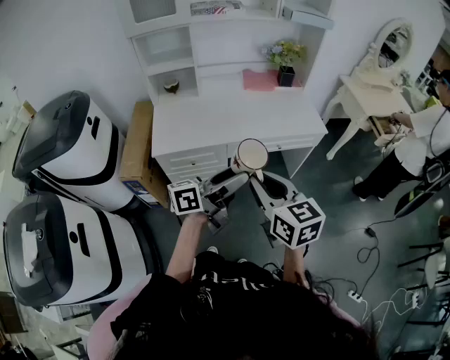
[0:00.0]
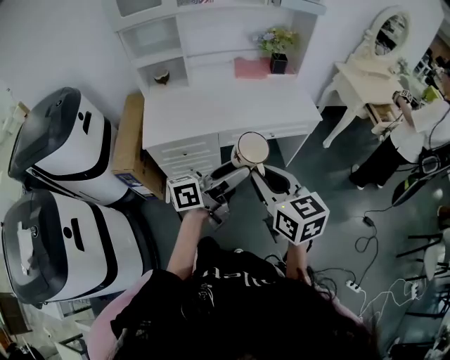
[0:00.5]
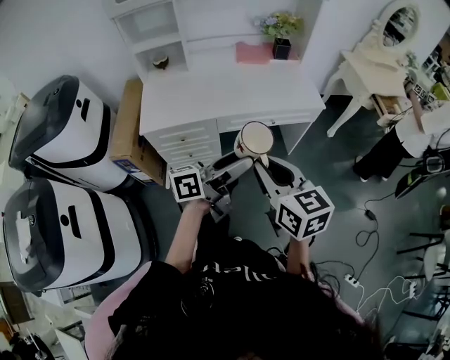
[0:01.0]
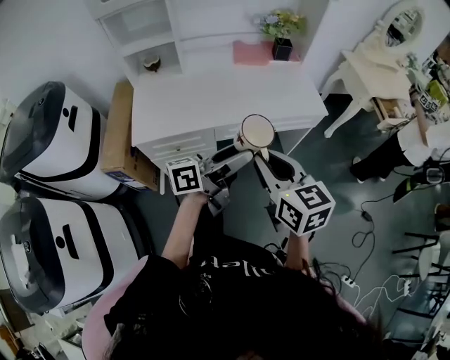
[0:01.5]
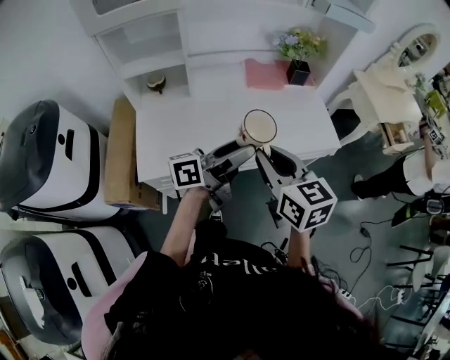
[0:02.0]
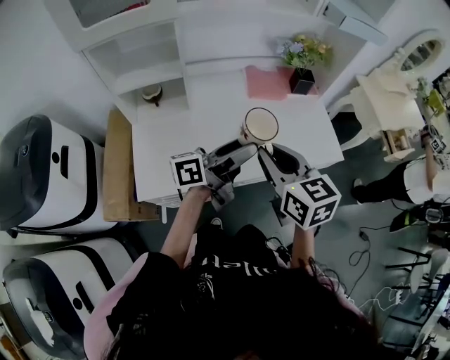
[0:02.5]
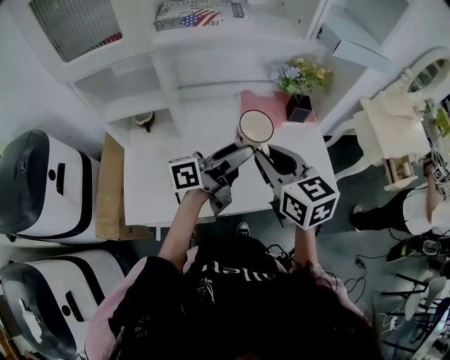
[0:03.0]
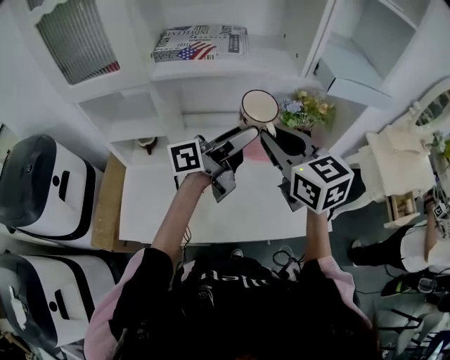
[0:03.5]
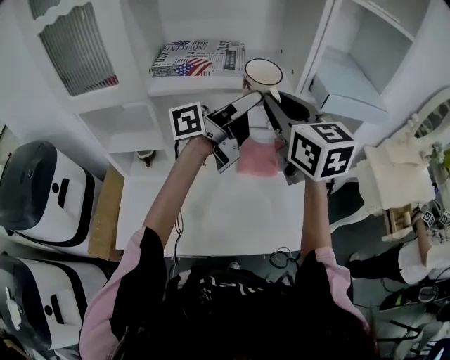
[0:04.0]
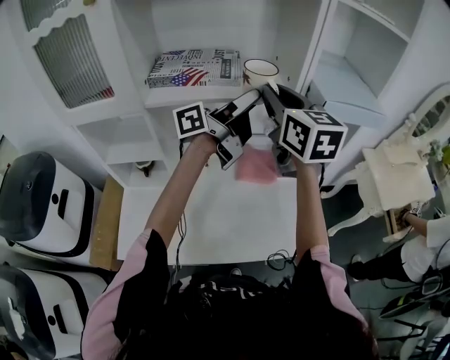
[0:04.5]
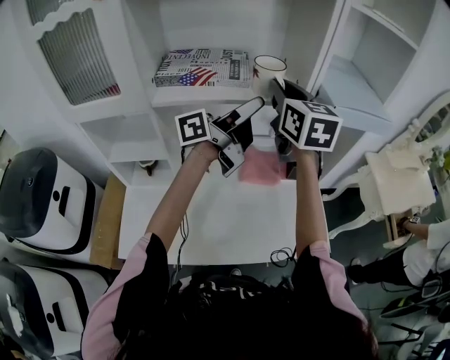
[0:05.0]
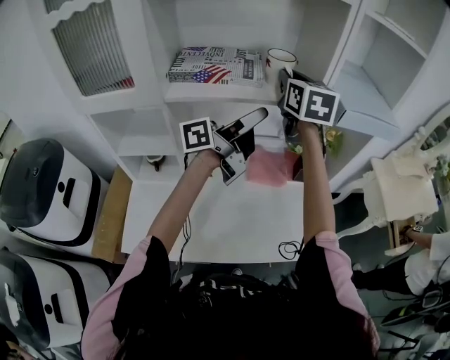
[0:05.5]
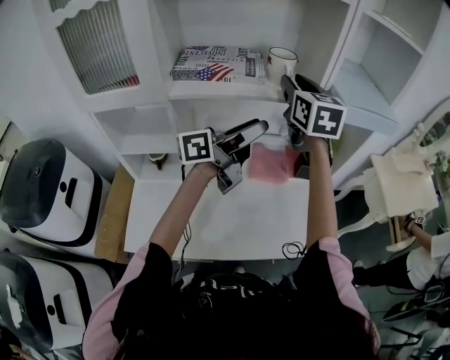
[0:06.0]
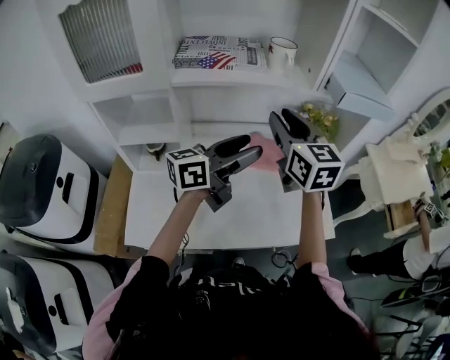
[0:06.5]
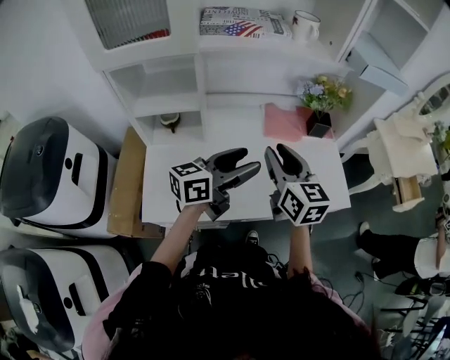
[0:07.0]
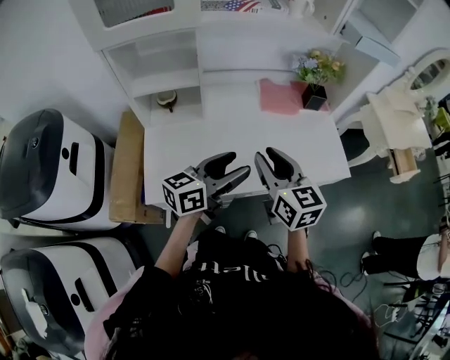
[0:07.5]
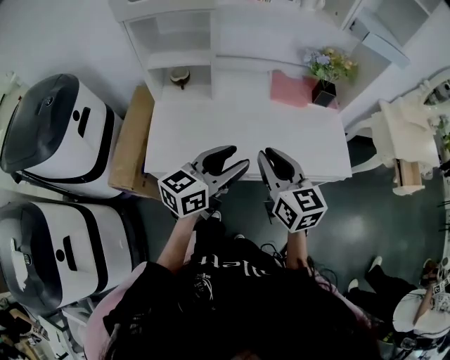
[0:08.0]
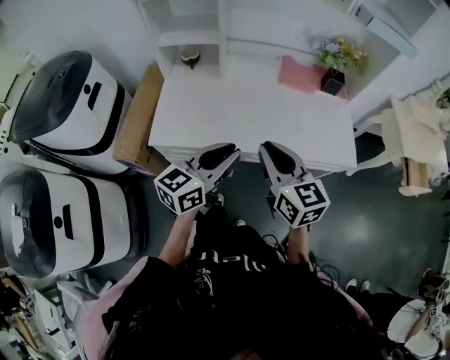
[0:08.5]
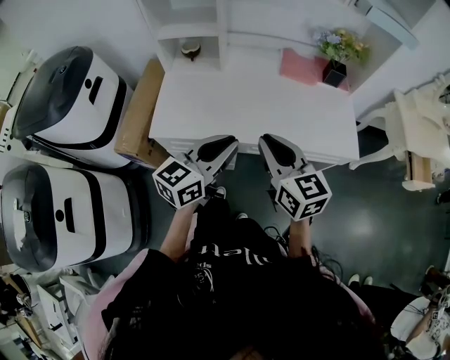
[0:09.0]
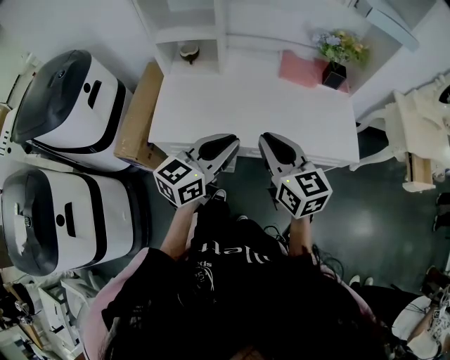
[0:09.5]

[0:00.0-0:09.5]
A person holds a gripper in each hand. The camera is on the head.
0:00.0 to 0:02.0: Both grippers travel together forward, roughly 25 cm.
0:02.0 to 0:04.0: Both grippers move forward and upward, some 40 cm. The right gripper changes its angle by about 20 degrees.
0:04.0 to 0:05.5: The right gripper shifts some 15 cm forward.
0:05.5 to 0:07.5: The two grippers go roughly 40 cm backward and downward. The left gripper turns by about 30 degrees.
0:07.5 to 0:09.5: Both grippers move backward, about 10 cm. The left gripper changes its angle by some 20 degrees, and closes its fingers.

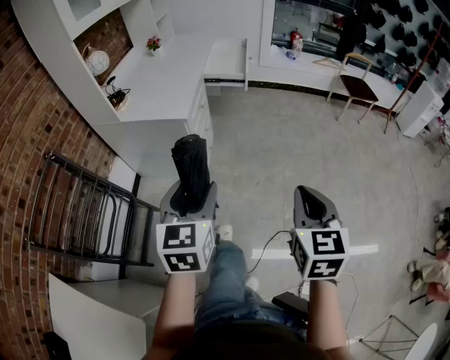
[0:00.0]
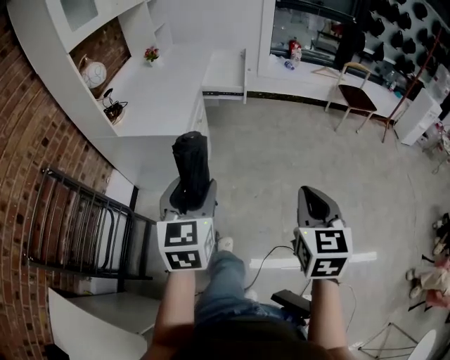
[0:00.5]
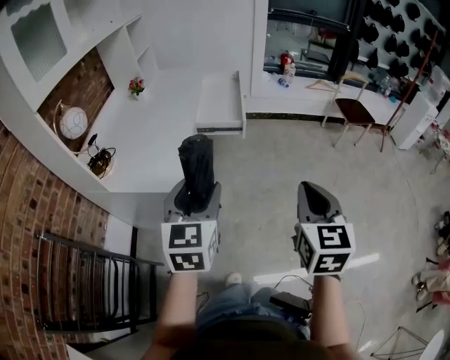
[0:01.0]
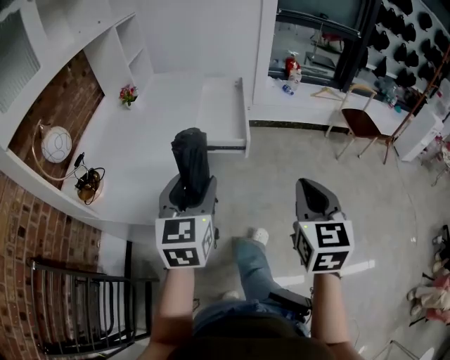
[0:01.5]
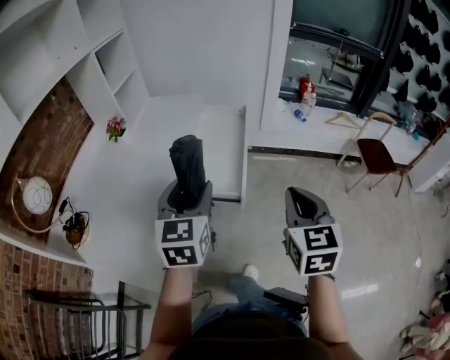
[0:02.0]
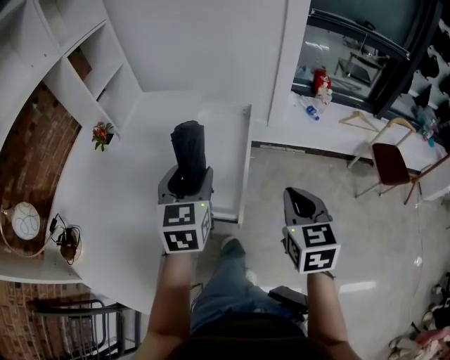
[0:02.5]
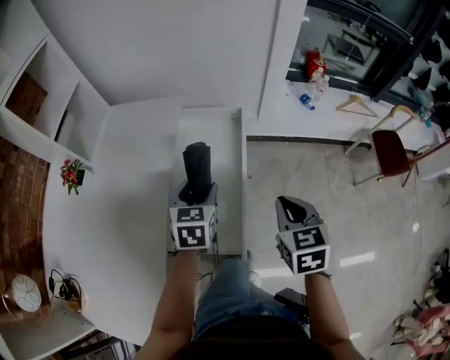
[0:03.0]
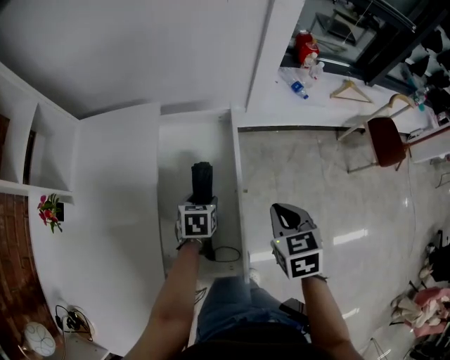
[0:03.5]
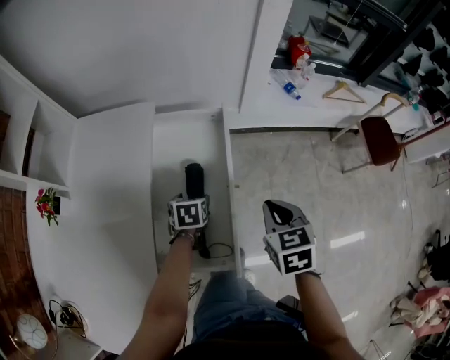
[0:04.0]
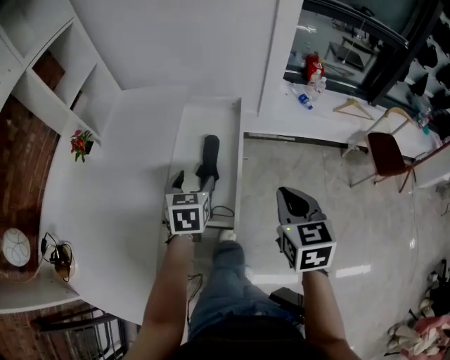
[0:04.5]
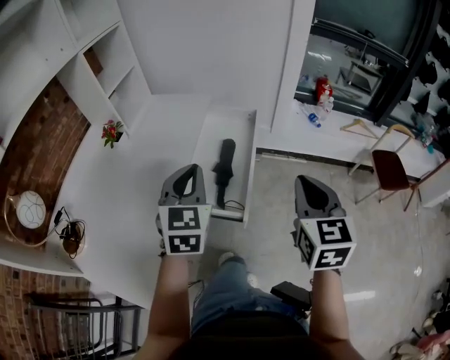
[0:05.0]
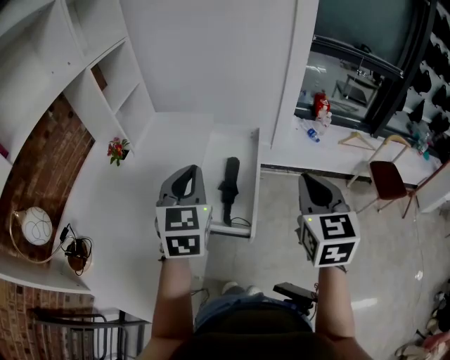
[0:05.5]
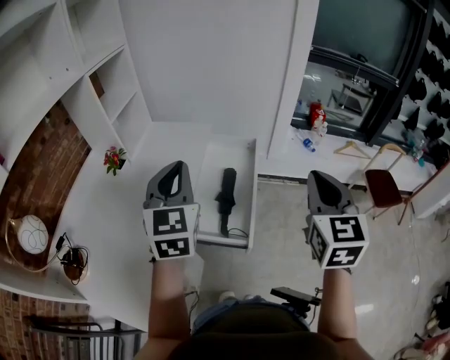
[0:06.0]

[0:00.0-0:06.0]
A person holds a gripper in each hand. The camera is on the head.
0:00.0 to 0:02.0: The two grippers travel together, forward, about 70 cm.
0:02.0 to 0:04.0: Both grippers move forward and downward, about 50 cm. The right gripper swivels approximately 30 degrees. Meanwhile the left gripper tilts its fingers roughly 50 degrees downward.
0:04.0 to 0:06.0: The two grippers go roughly 40 cm upward and backward. The right gripper tilts its fingers some 40 degrees upward. Meanwhile the left gripper points its fingers about 50 degrees further upward, and closes.

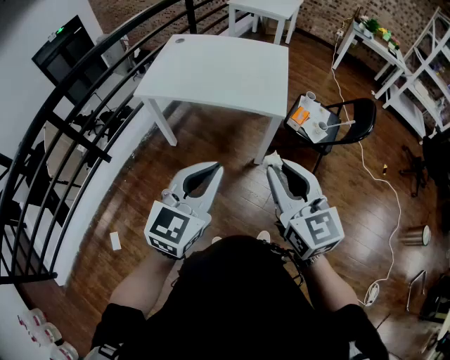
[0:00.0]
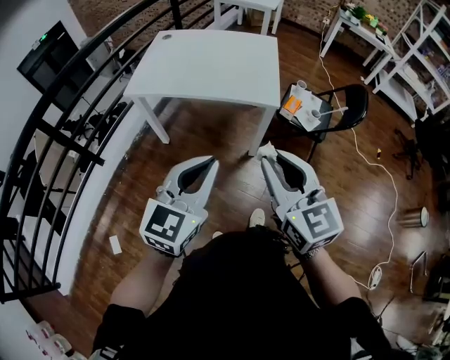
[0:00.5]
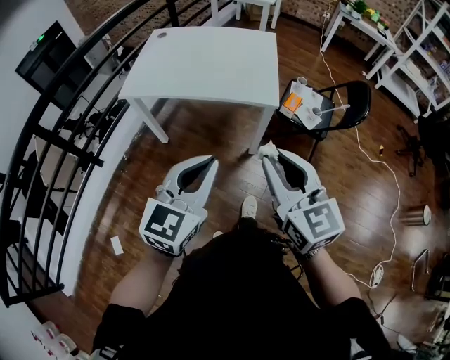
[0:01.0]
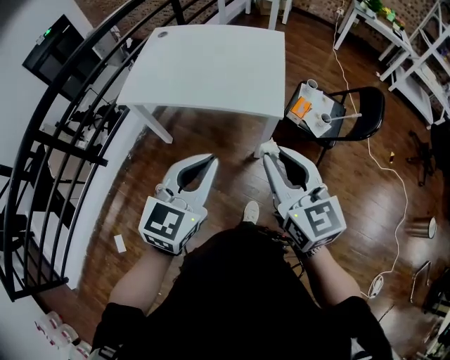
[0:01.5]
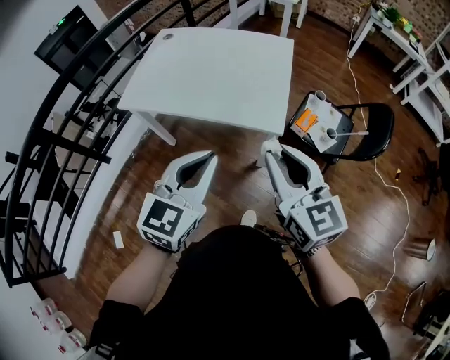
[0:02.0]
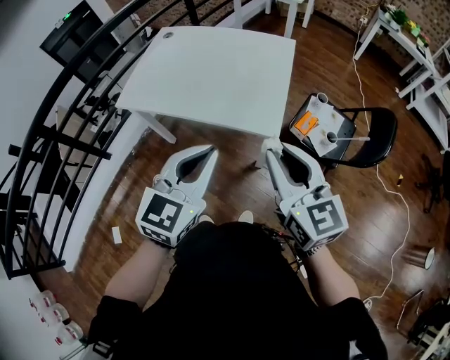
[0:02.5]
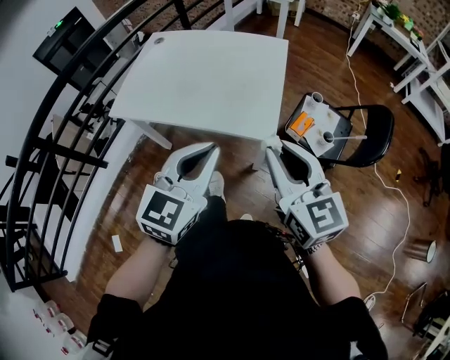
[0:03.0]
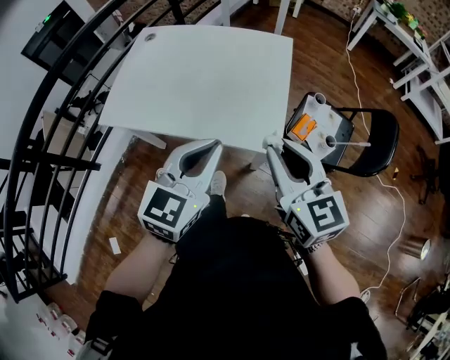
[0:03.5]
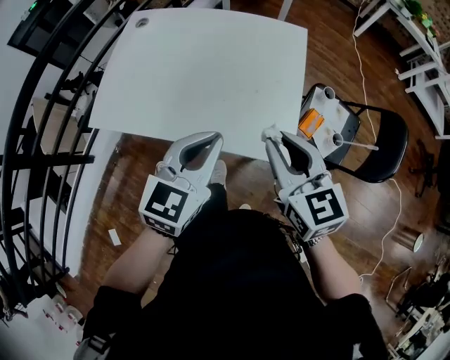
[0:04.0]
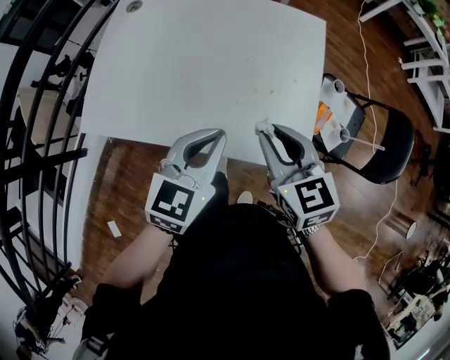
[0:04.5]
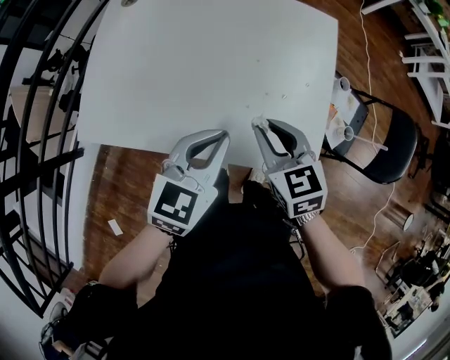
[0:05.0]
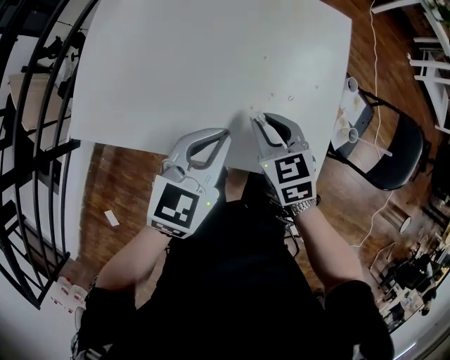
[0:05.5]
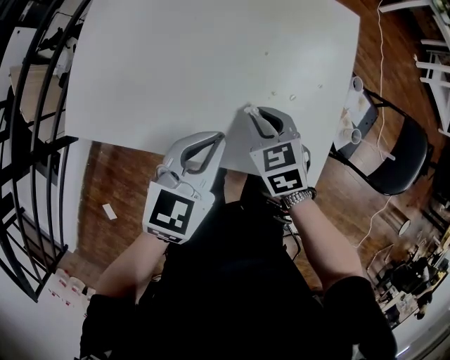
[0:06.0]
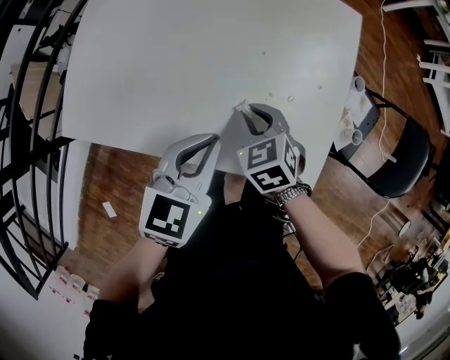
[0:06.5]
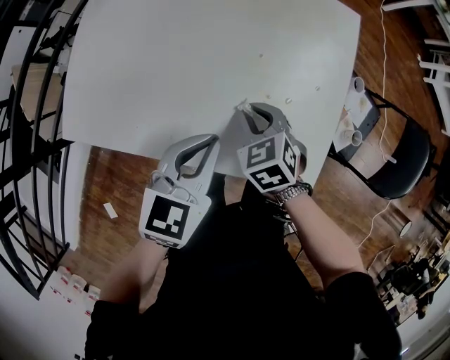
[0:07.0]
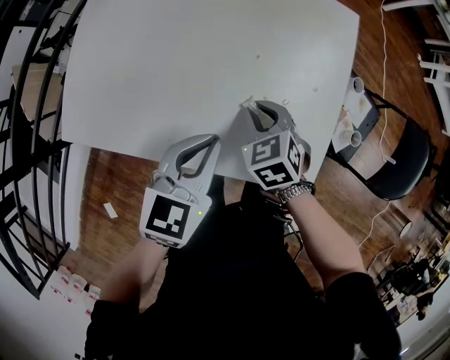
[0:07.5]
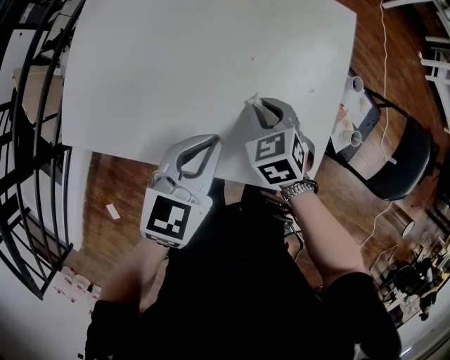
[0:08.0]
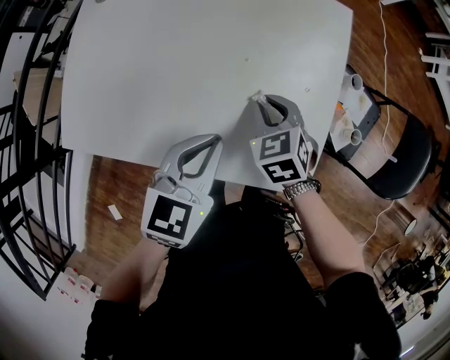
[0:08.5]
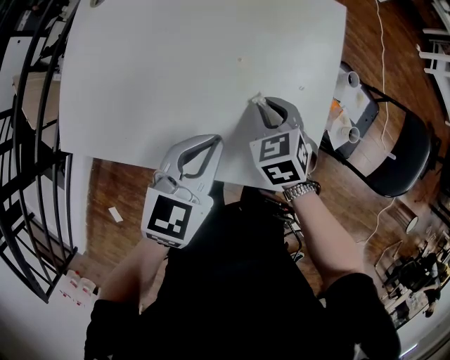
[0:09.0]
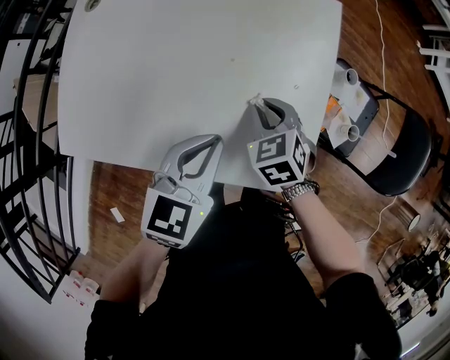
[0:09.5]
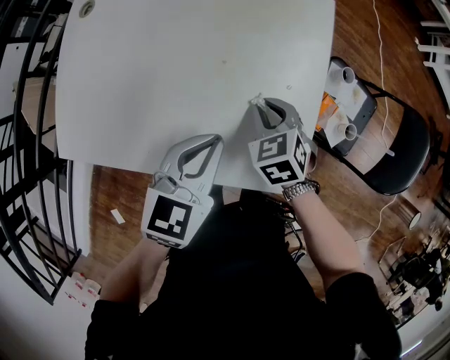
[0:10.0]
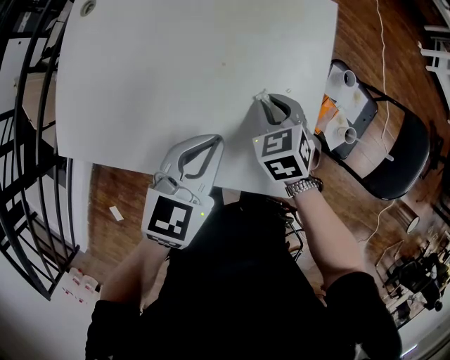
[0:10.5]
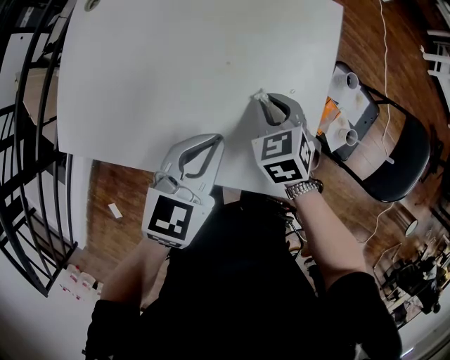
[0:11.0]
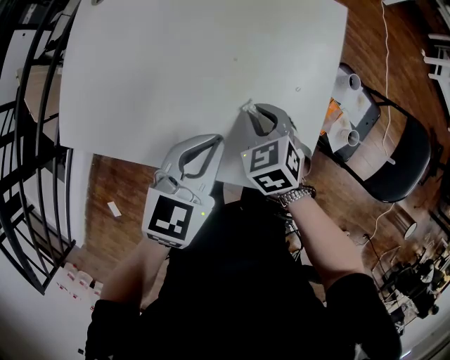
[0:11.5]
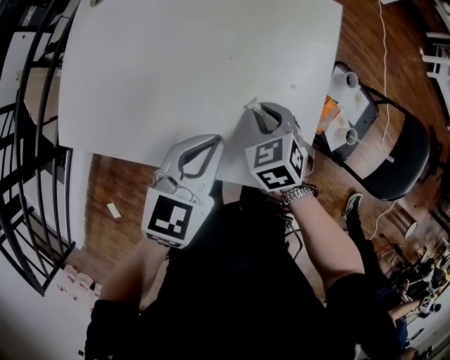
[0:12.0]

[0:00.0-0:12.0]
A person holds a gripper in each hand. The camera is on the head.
0:00.0 to 0:02.0: Both grippers move forward, some 20 cm.
0:02.0 to 0:04.0: Both grippers move forward, some 25 cm.
0:04.0 to 0:06.0: The left gripper goes about 15 cm downward, forward and to the left; the right gripper moves downward, forward and to the left, roughly 30 cm, and tips its fingers downward by approximately 30 degrees.
0:06.0 to 0:08.0: The right gripper moves roughly 5 cm.
0:08.0 to 0:10.0: The two grippers go approximately 5 cm to the right.
0:10.0 to 0:12.0: The grippers move only a little.
